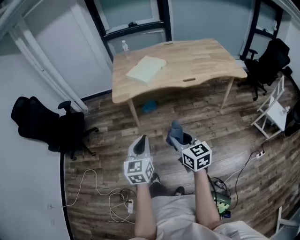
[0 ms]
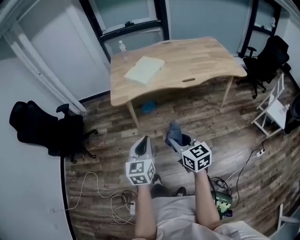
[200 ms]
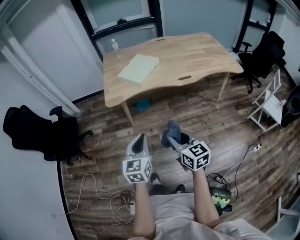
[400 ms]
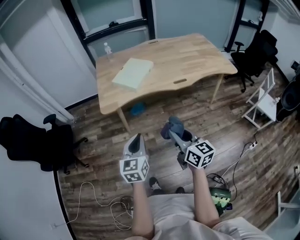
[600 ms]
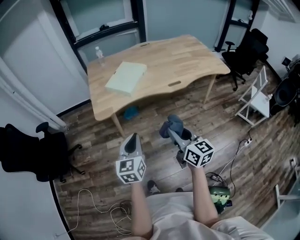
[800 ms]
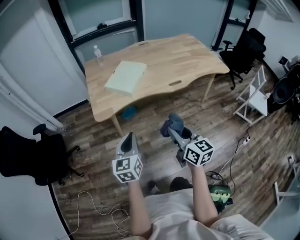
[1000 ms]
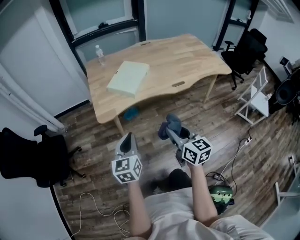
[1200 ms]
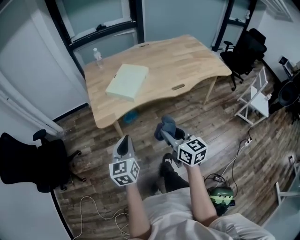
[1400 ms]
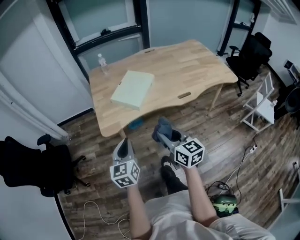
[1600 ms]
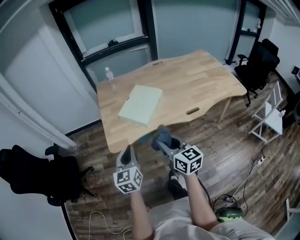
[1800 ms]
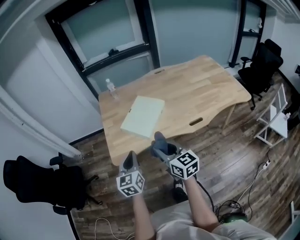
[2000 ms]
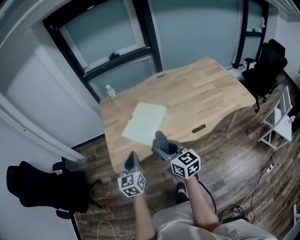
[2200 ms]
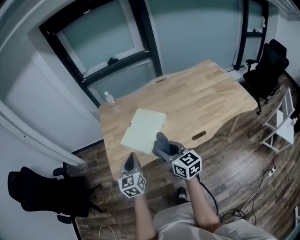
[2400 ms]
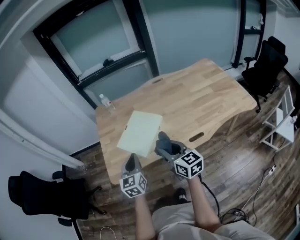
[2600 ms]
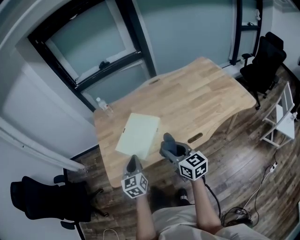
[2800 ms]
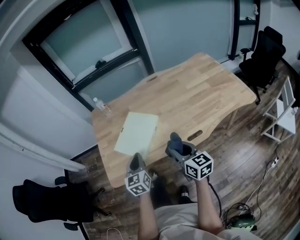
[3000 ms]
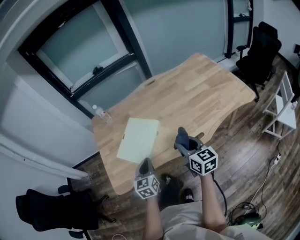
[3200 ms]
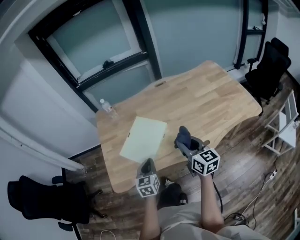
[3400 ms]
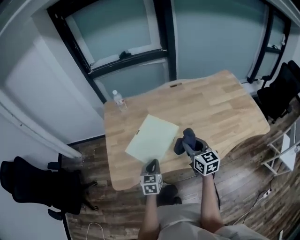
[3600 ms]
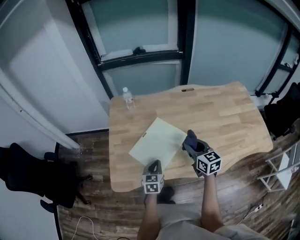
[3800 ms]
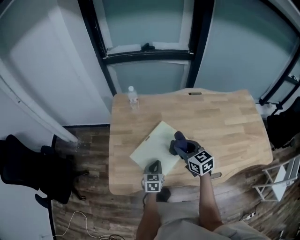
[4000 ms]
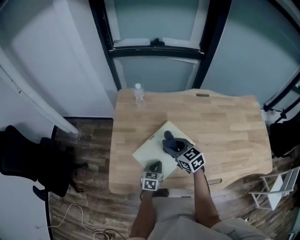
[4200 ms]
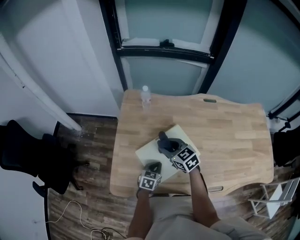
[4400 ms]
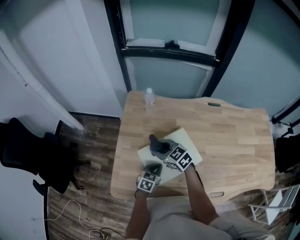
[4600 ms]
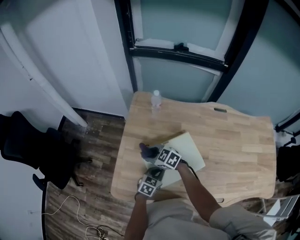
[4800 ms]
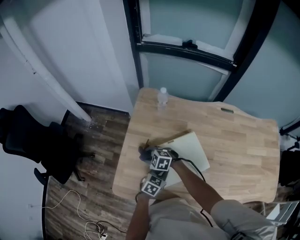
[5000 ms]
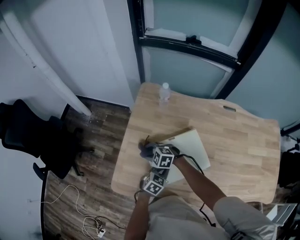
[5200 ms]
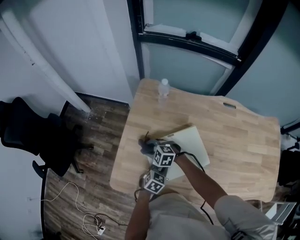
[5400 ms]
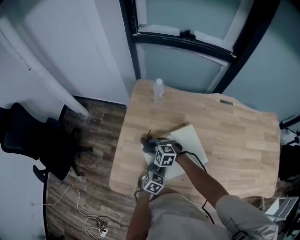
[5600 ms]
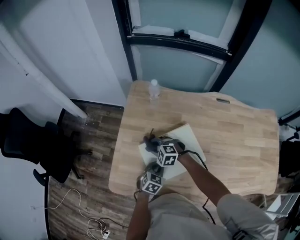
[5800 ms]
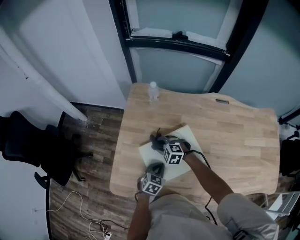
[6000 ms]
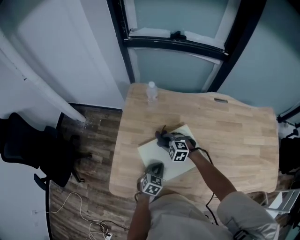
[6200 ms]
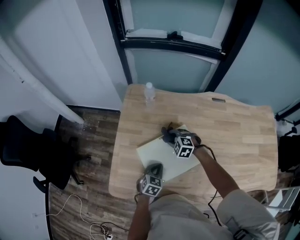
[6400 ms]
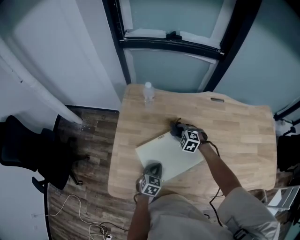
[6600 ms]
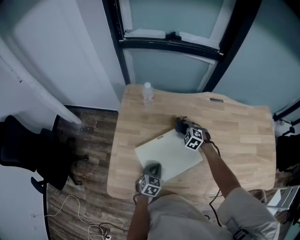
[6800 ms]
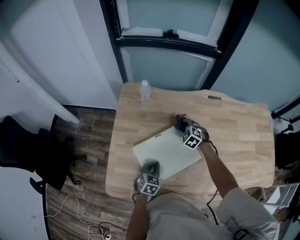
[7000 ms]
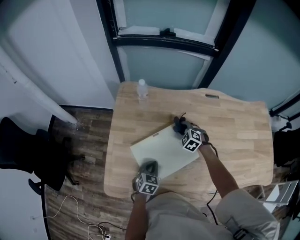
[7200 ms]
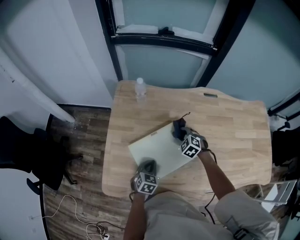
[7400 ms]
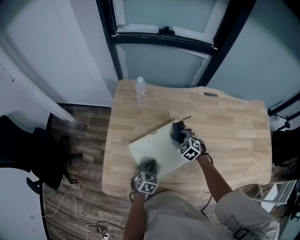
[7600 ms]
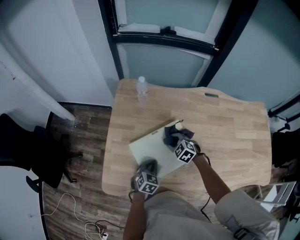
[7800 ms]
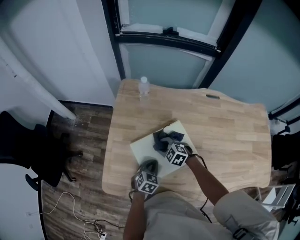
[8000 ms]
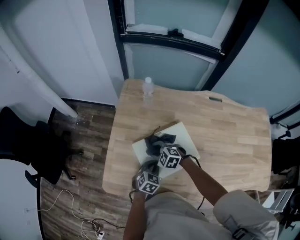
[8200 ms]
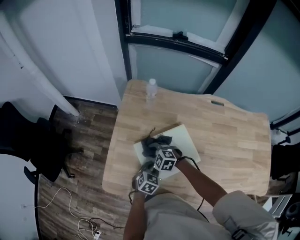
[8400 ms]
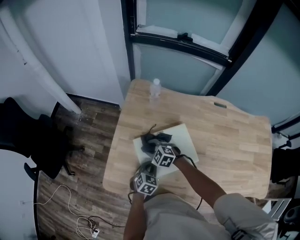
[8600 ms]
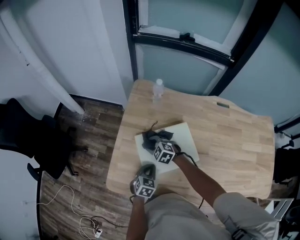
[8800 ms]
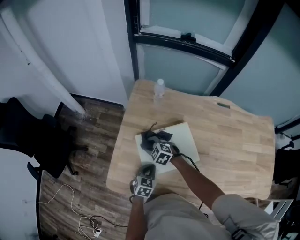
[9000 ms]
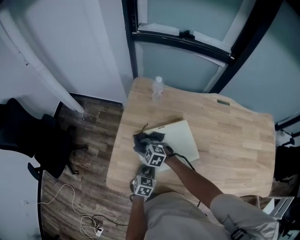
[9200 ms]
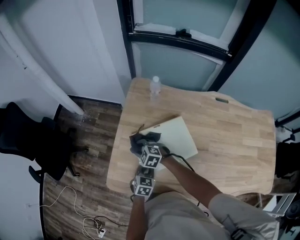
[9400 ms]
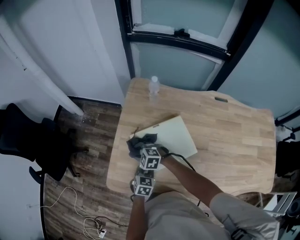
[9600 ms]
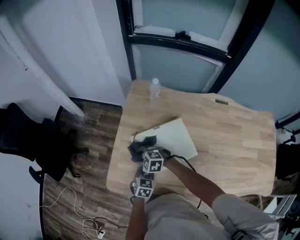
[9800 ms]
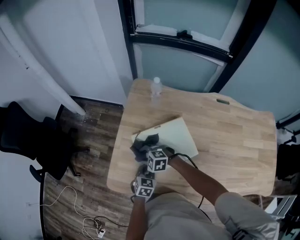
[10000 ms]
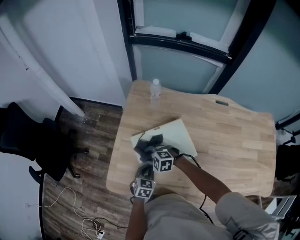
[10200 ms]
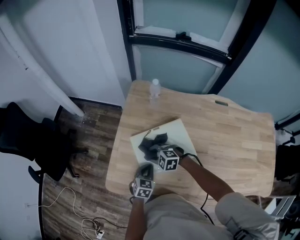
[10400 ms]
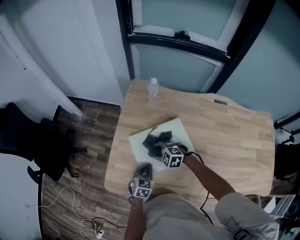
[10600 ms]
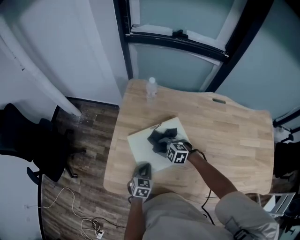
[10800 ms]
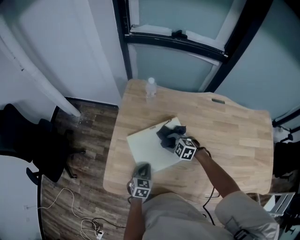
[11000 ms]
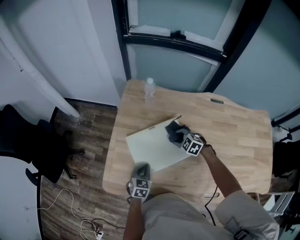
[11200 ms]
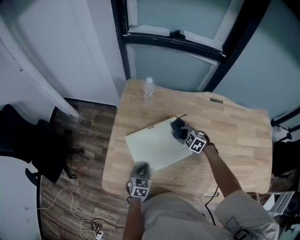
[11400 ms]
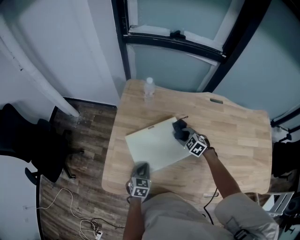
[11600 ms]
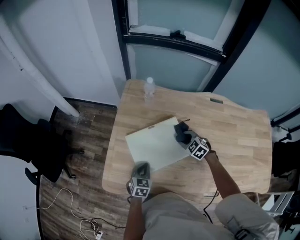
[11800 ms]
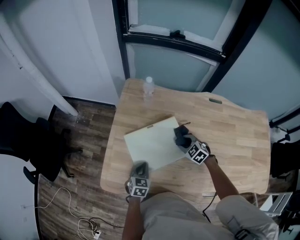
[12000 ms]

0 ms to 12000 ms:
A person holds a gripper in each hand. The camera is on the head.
0 ms to 1600 ms: Both grippers move forward, some 30 cm.
1600 ms to 3000 ms: Both grippers move forward and to the right, some 30 cm.
3000 ms to 4400 ms: The left gripper goes about 25 cm forward and downward, and rotates approximately 30 degrees. The right gripper travels forward and to the left by some 40 cm, and swivels roughly 50 degrees.
4400 ms to 6000 ms: The right gripper shifts about 15 cm downward, and rotates around the line of its fingers by roughly 40 degrees, counterclockwise from behind.
6000 ms to 7600 ms: The right gripper shifts about 15 cm to the right, and rotates approximately 30 degrees.
7600 ms to 9000 ms: The left gripper heads to the left, covering about 5 cm. Meanwhile the right gripper heads to the left, covering roughly 25 cm, and rotates about 30 degrees.
9000 ms to 10400 ms: The right gripper heads backward, covering some 5 cm.
10400 ms to 12000 ms: The right gripper shifts about 20 cm to the right, and changes its angle by roughly 30 degrees.

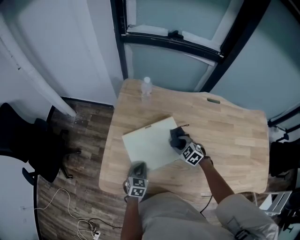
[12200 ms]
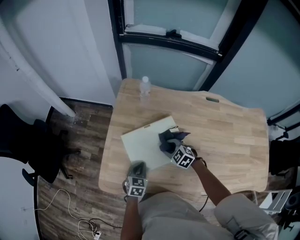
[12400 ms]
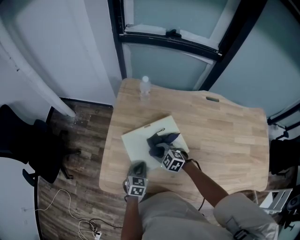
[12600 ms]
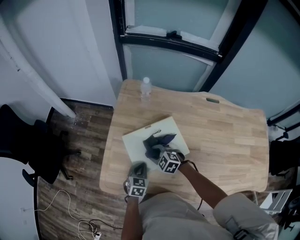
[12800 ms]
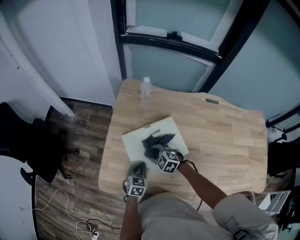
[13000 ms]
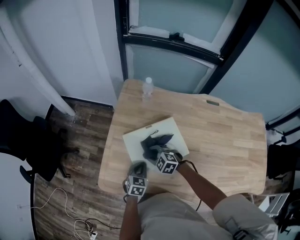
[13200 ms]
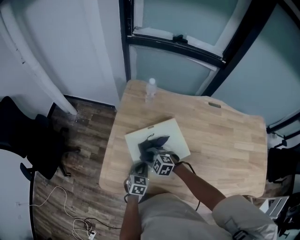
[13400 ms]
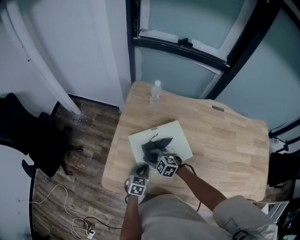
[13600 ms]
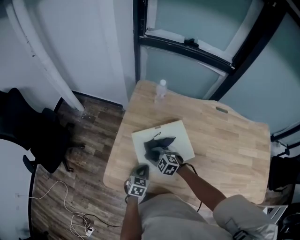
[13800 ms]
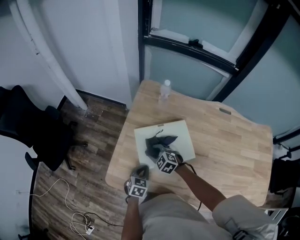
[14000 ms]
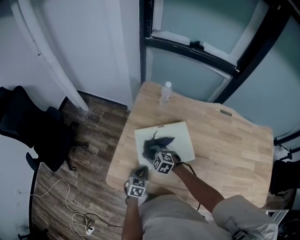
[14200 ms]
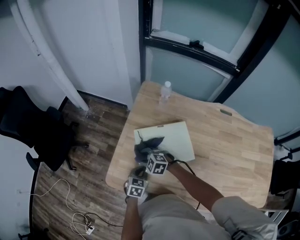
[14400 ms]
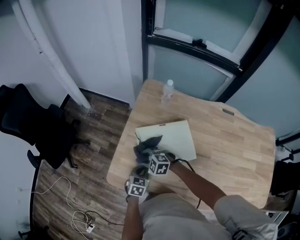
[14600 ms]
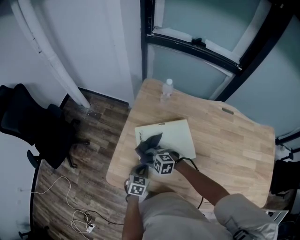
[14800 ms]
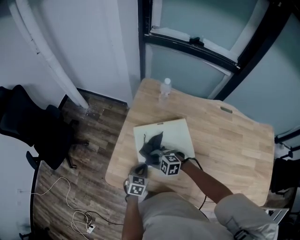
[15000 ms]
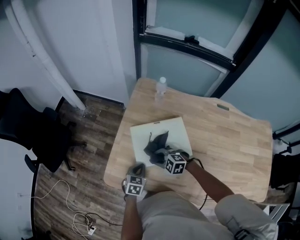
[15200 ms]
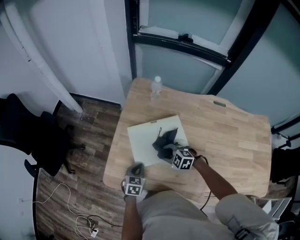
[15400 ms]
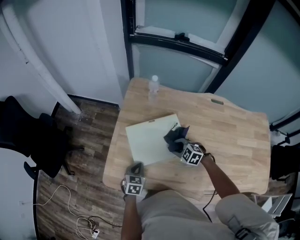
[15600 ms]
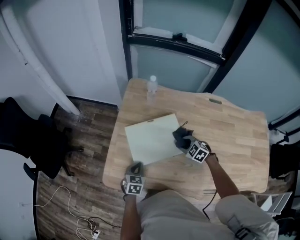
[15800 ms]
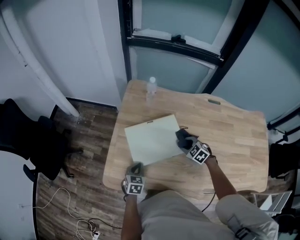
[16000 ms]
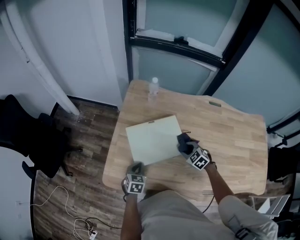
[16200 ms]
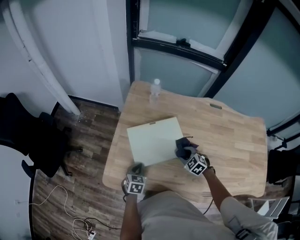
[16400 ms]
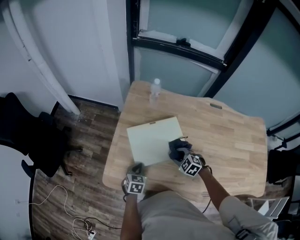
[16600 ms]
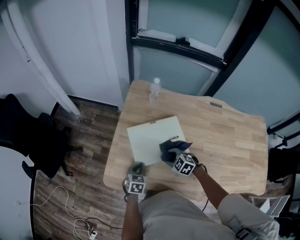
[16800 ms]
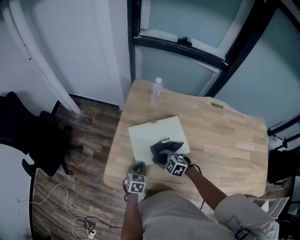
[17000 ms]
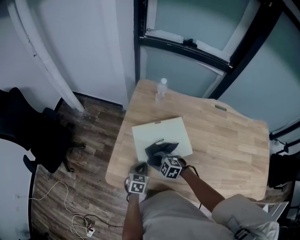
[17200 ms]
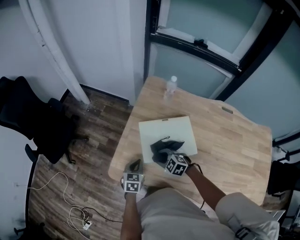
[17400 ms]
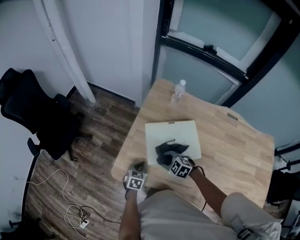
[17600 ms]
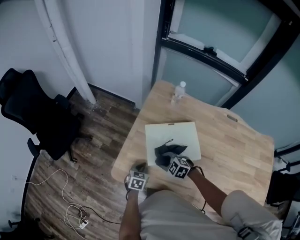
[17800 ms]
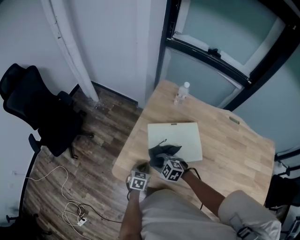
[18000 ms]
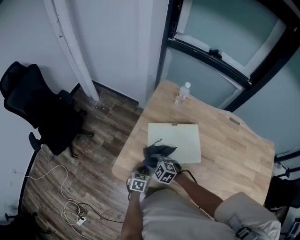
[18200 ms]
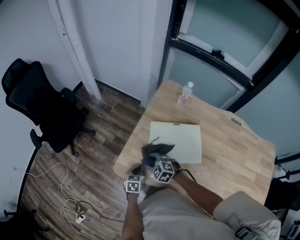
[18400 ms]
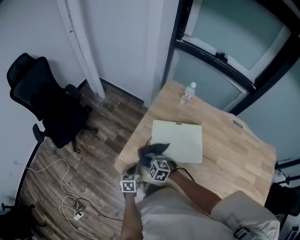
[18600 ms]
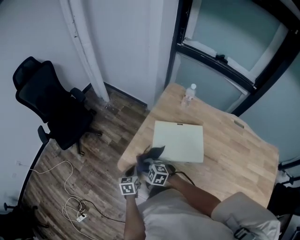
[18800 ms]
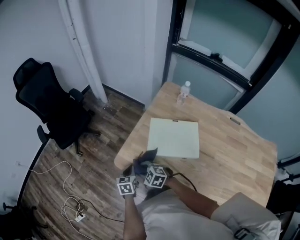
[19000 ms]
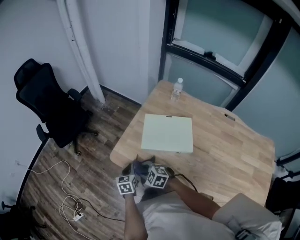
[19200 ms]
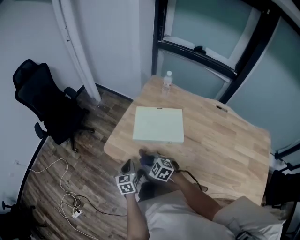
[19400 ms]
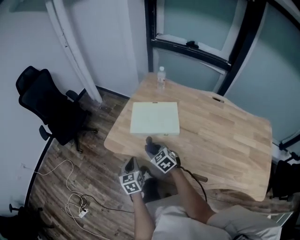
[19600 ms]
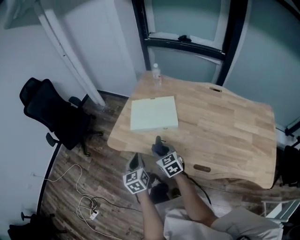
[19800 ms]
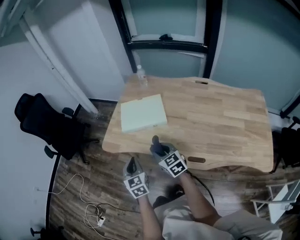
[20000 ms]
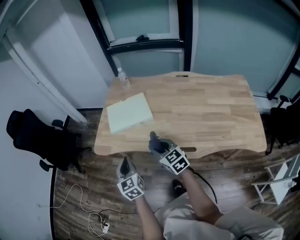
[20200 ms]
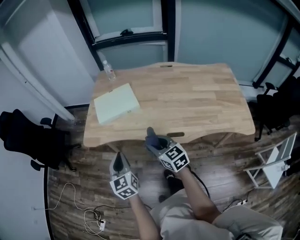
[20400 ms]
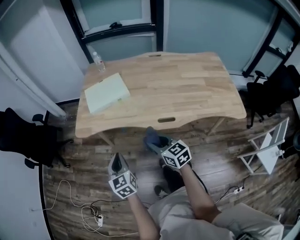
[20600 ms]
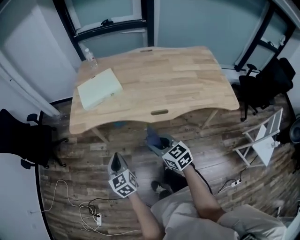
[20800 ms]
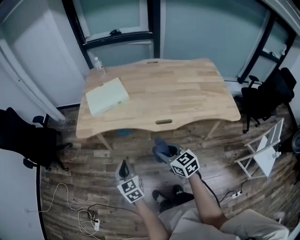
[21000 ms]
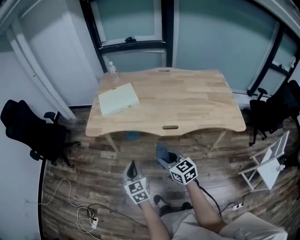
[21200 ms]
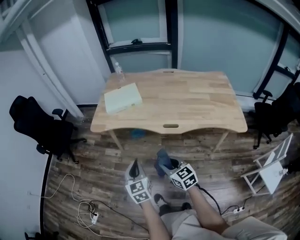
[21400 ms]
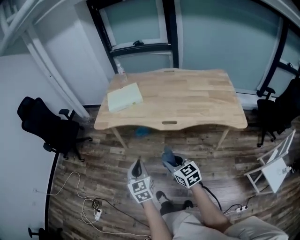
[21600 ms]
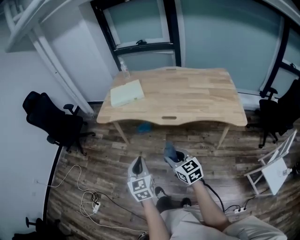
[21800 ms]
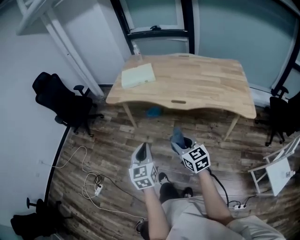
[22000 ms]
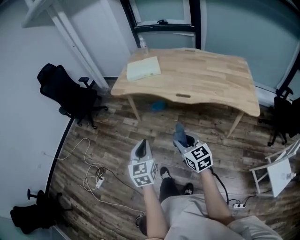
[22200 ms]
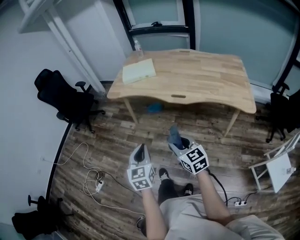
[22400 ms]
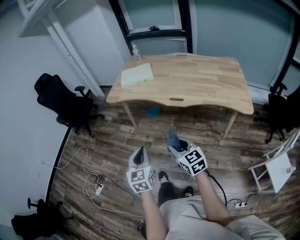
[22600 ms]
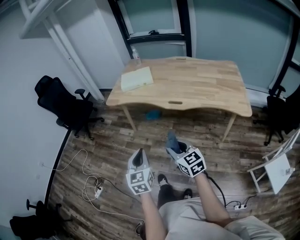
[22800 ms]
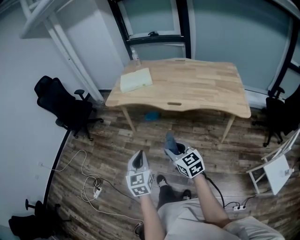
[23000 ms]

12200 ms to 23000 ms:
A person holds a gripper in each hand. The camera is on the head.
12200 ms to 13800 ms: The right gripper moves to the left, approximately 20 cm, and rotates about 20 degrees.
13800 ms to 15200 ms: The right gripper reaches some 10 cm to the left, then returns.
15200 ms to 16800 ms: The right gripper heads to the right, covering roughly 10 cm, and rotates roughly 20 degrees.
16800 ms to 18400 ms: The left gripper goes about 10 cm to the left, and rotates some 20 degrees. The right gripper is displaced to the left by approximately 20 cm.
18400 ms to 20000 ms: The two grippers go roughly 35 cm backward and upward. The right gripper swivels about 50 degrees. The left gripper changes its angle by roughly 30 degrees.
20000 ms to 21400 ms: The grippers both shift backward by roughly 35 cm.
21400 ms to 23000 ms: The two grippers go about 20 cm backward.

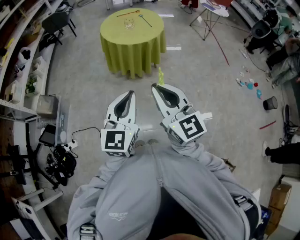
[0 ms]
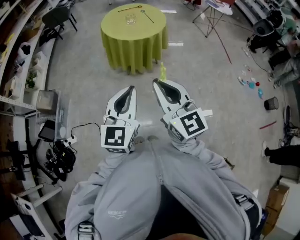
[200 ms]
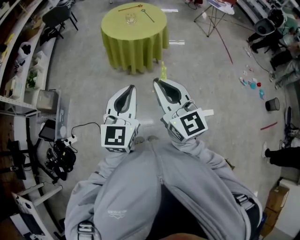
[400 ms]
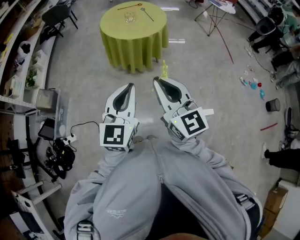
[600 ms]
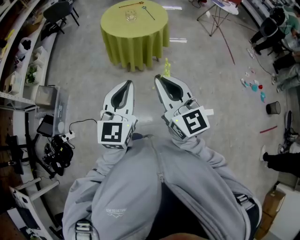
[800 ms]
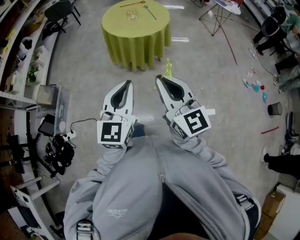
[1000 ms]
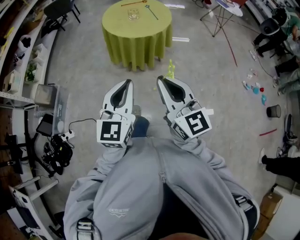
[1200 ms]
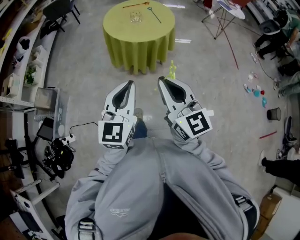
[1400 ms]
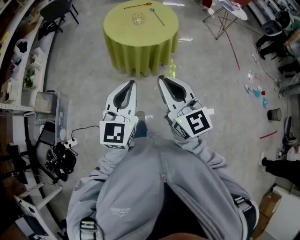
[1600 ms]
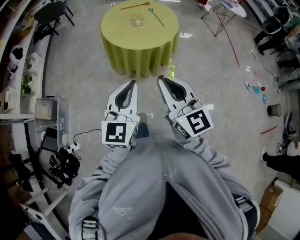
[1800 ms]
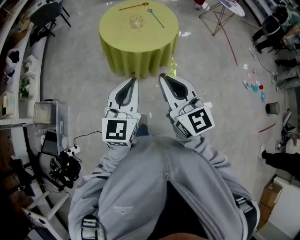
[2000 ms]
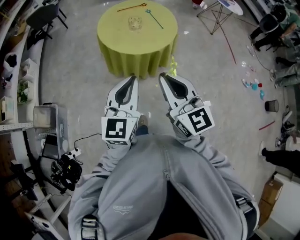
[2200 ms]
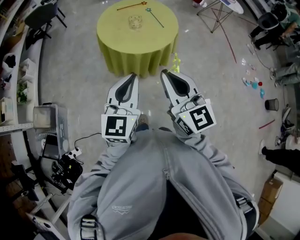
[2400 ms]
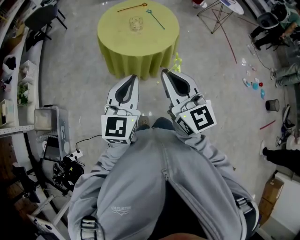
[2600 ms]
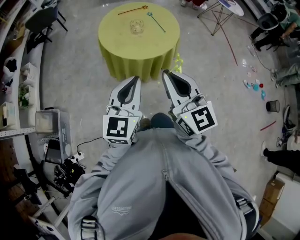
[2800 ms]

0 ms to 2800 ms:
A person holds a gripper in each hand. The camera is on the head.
0 ms to 1400 ms: The grippers both shift forward by about 20 cm.
1400 ms to 2800 ms: Both grippers move forward, approximately 25 cm.
